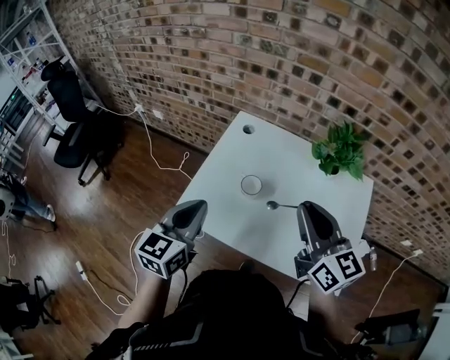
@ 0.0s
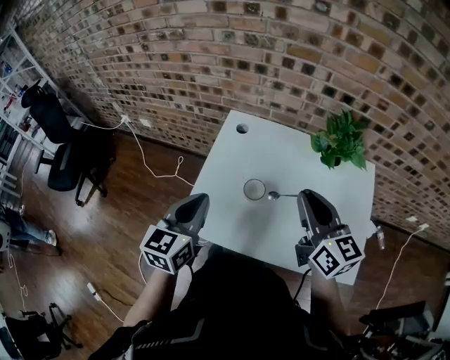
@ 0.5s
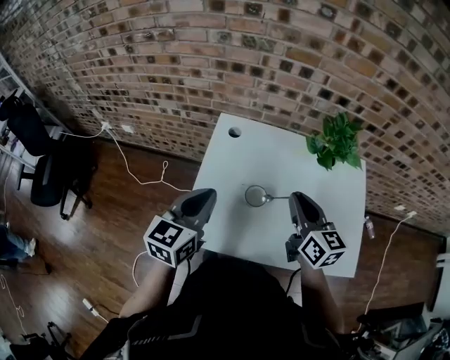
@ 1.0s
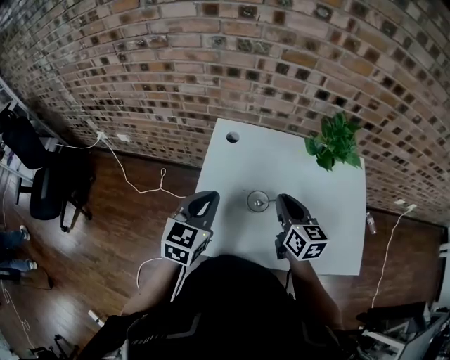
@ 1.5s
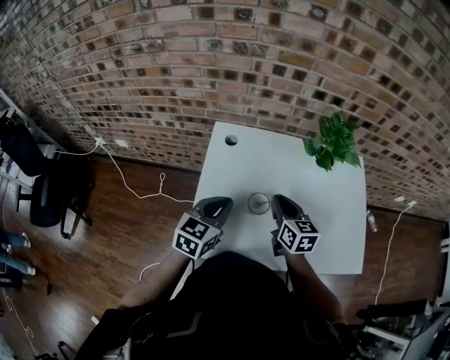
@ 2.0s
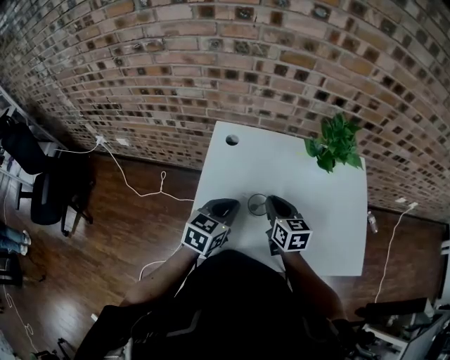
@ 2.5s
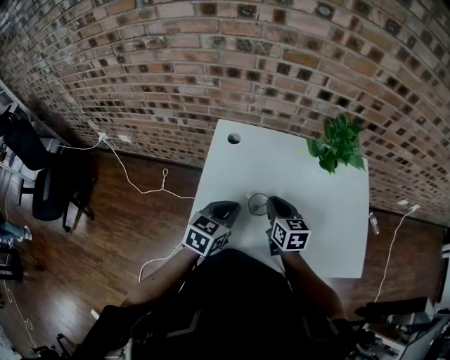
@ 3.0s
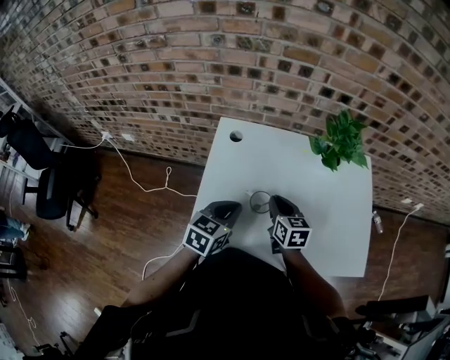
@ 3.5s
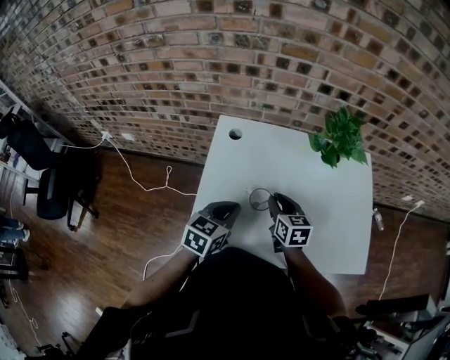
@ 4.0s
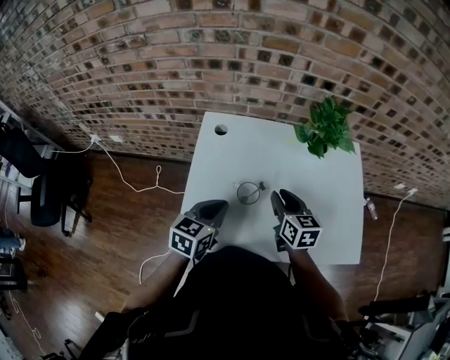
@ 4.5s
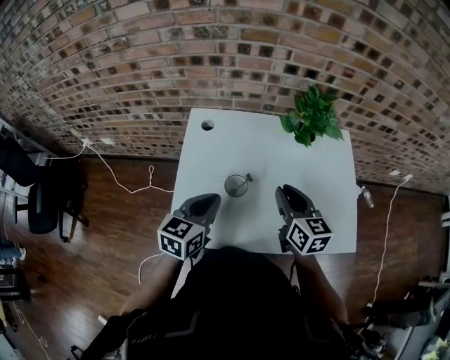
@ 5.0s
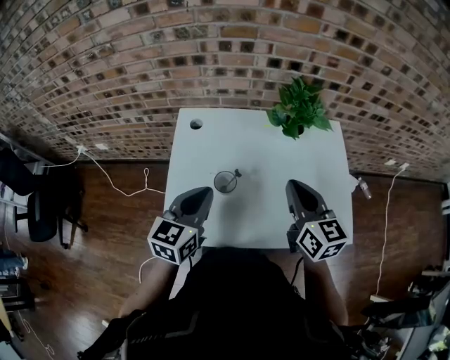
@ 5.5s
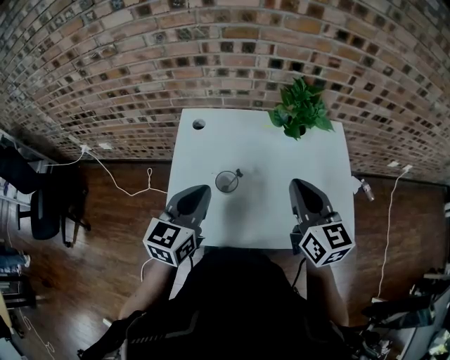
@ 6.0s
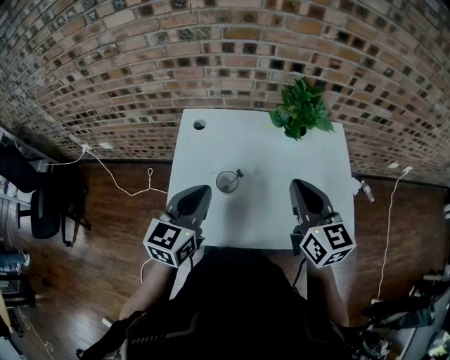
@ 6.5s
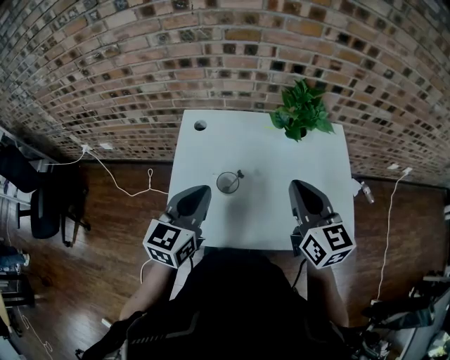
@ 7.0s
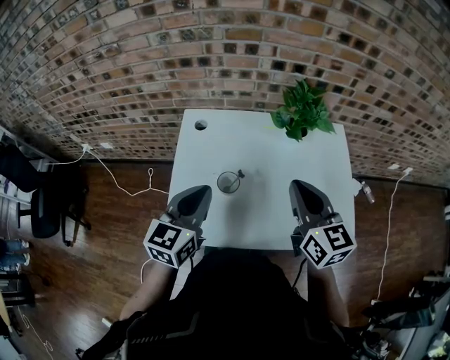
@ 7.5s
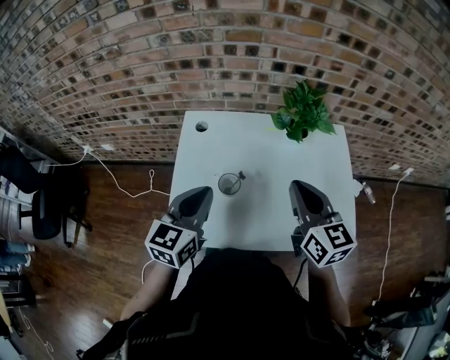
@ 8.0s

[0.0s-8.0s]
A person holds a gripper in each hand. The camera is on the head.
0.0s to 2.0s: The left gripper shifts some 15 cm forward and downward, and swivels some 30 degrees; the right gripper heads downward, forward and to the left, covering some 25 cm, and rotates about 30 degrees.
2.0s to 4.0s: The right gripper heads downward, covering about 5 cm.
4.0s to 6.0s: The right gripper heads upward and to the right, covering about 25 cm, turns by some 20 degrees, and closes its fingers. The left gripper shifts roughly 10 cm upward.
6.0s to 8.0s: Neither gripper changes place.

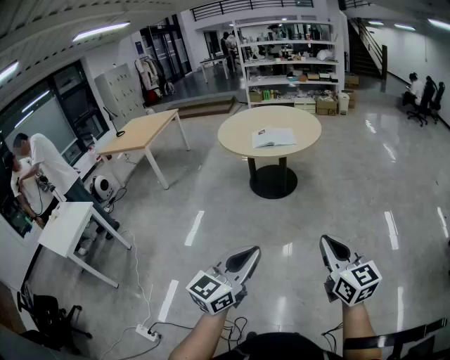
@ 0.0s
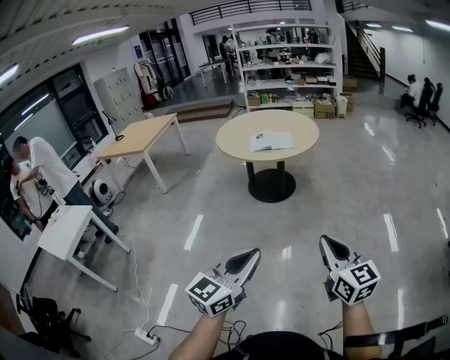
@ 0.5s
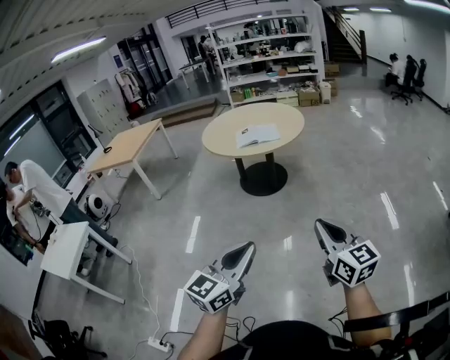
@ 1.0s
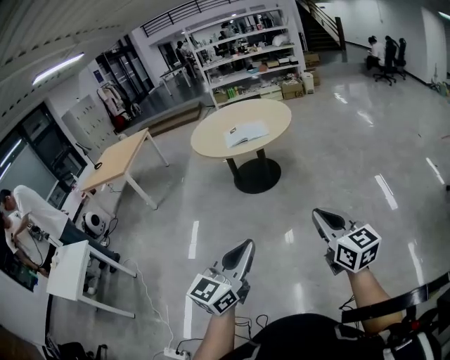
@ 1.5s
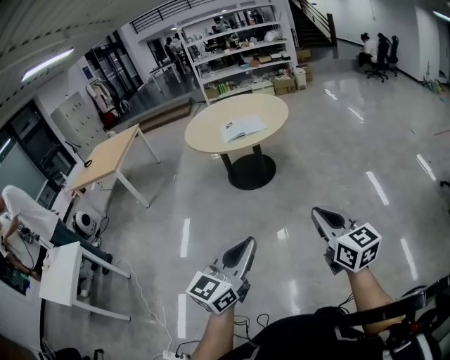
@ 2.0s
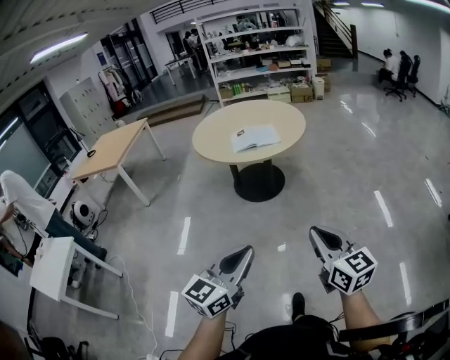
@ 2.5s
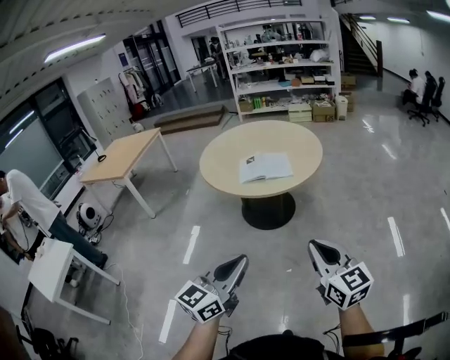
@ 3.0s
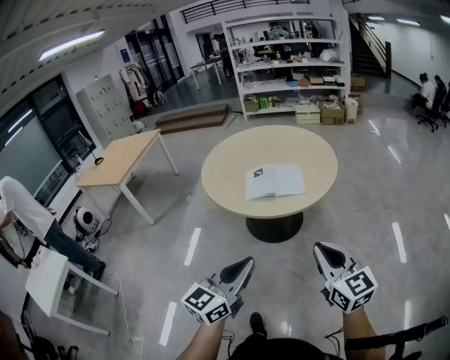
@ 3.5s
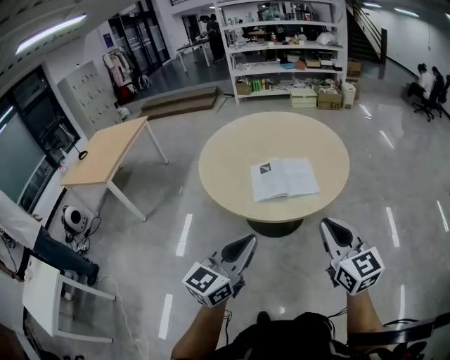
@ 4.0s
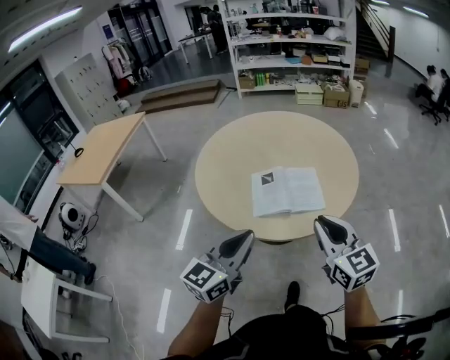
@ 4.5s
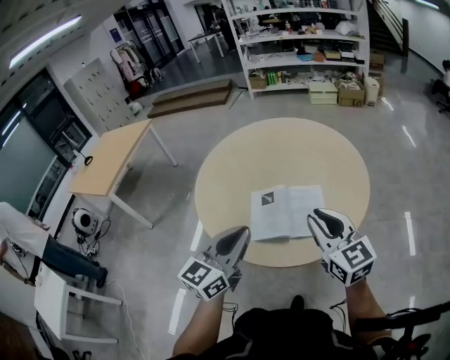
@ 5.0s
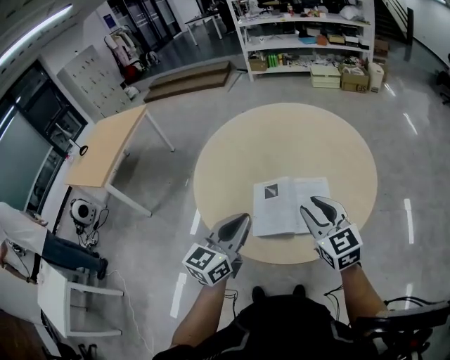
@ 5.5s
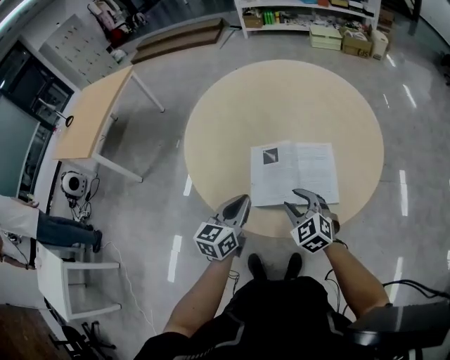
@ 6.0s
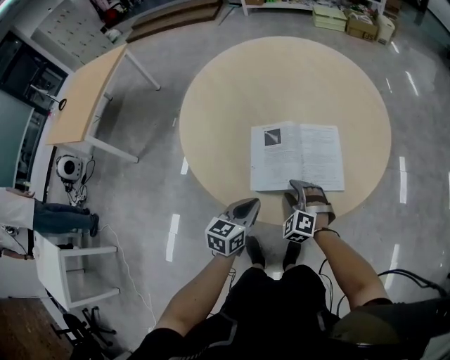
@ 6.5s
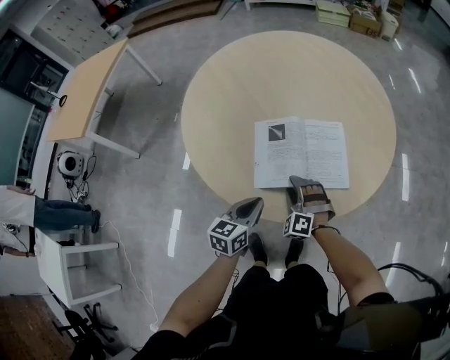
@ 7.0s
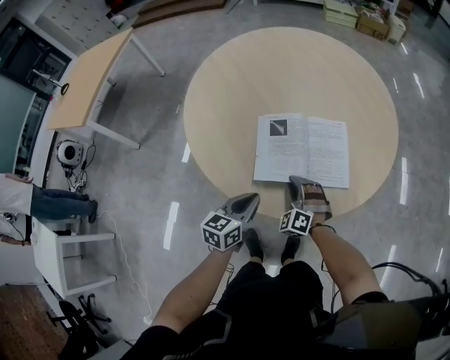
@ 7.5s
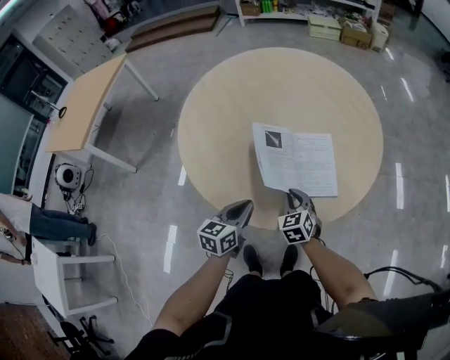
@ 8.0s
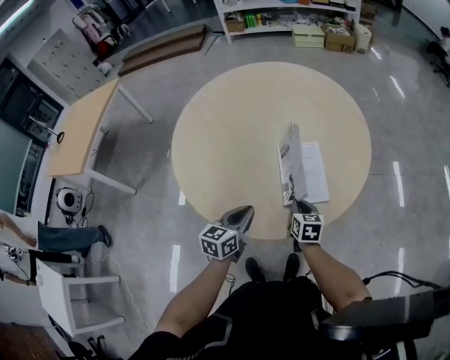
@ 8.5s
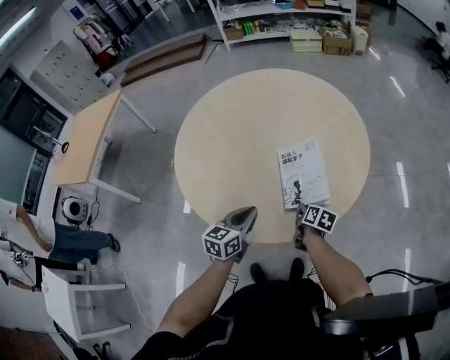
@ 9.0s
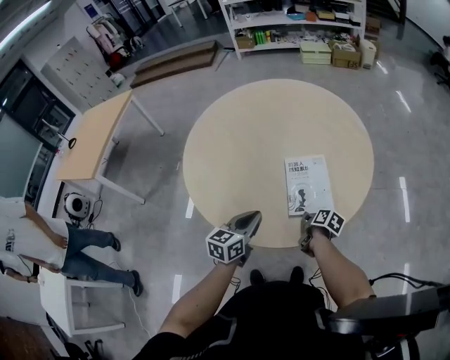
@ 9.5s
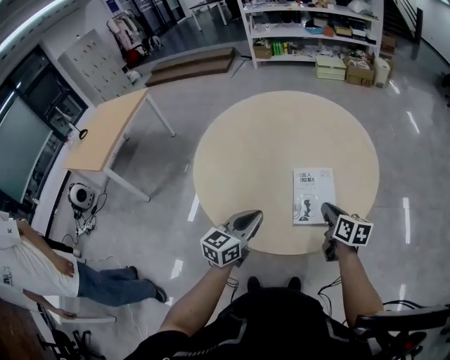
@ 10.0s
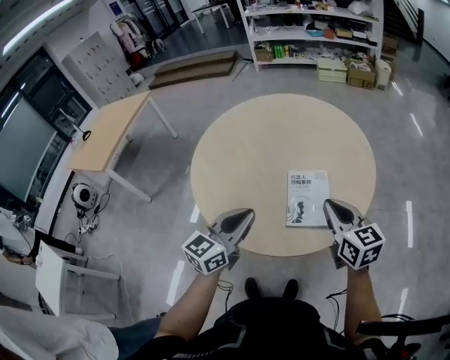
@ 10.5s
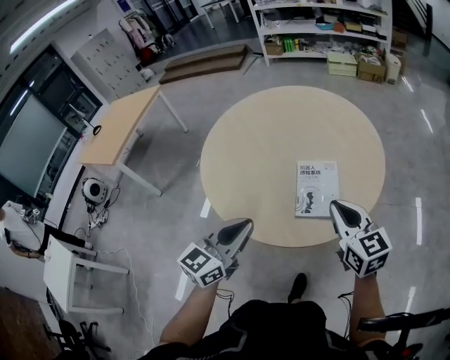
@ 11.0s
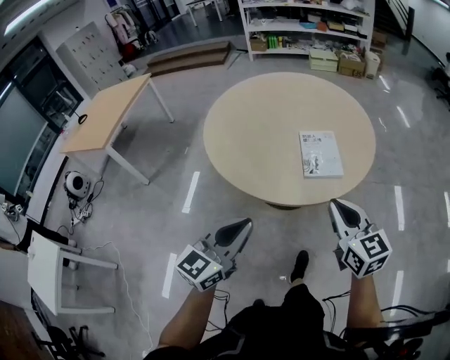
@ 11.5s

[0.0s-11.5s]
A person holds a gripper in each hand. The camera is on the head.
0.0s to 2.0s: The left gripper shifts by about 5 cm. Meanwhile the right gripper ends up some 5 cm from where it was.
2.0s to 4.0s: The pair of grippers is taken forward, about 70 cm.
4.0s to 6.0s: The grippers both shift forward and downward by about 40 cm. The right gripper angles its fingers downward, by roughly 30 degrees, and opens. The left gripper swivels about 30 degrees.
6.0s to 7.5s: Both grippers move downward, some 10 cm. The right gripper rotates roughly 30 degrees, and closes up.
7.5s to 9.5s: The right gripper moves to the right, about 15 cm, and rolls clockwise, seen from behind, by some 120 degrees, while the left gripper goes approximately 5 cm upward.
9.5s to 11.5s: The left gripper heads backward and upward, covering some 30 cm, and swivels approximately 20 degrees, while the right gripper moves upward and backward, about 40 cm, and rotates around the line of its fingers by approximately 60 degrees, counterclockwise from behind.

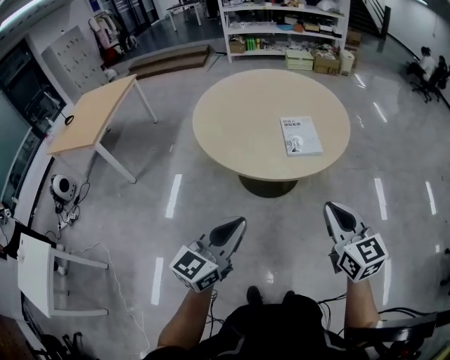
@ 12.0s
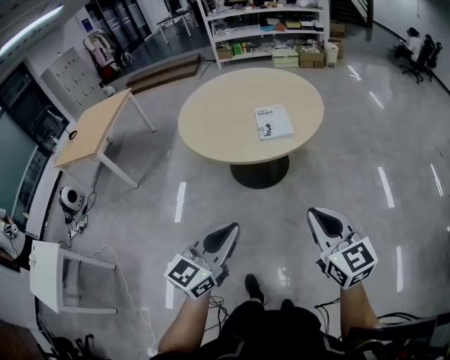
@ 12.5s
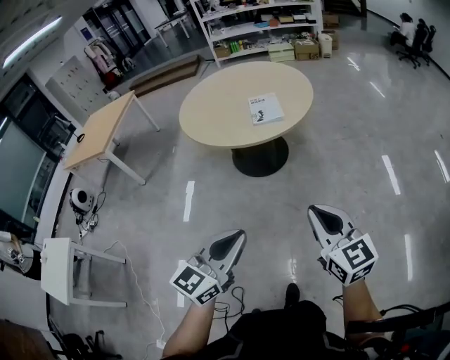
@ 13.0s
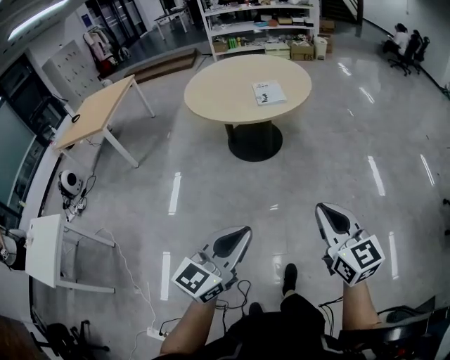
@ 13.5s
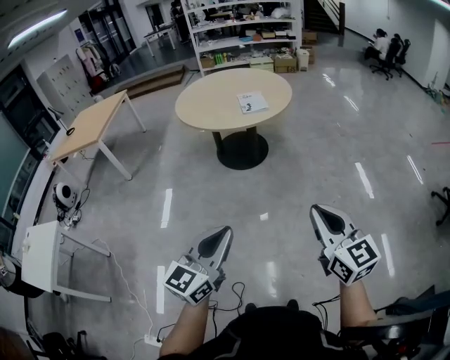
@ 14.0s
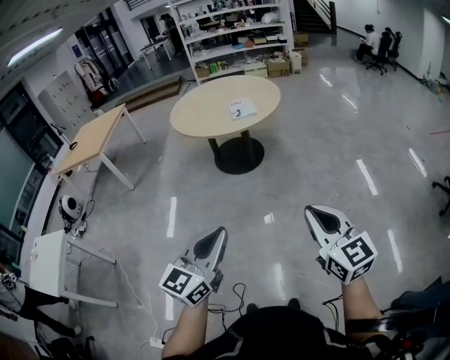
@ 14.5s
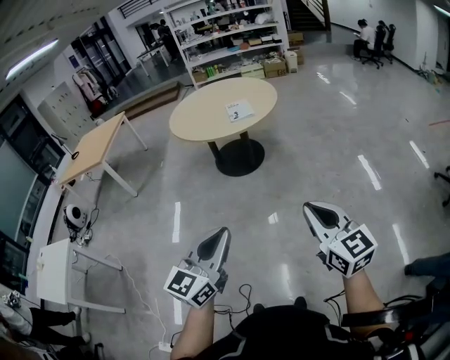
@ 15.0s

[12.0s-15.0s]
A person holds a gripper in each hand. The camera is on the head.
12.0s to 13.5s: The two grippers travel together, backward, approximately 50 cm.
13.5s to 15.0s: The right gripper travels backward and to the right by some 20 cm. The left gripper is displaced backward, to the right and upward by about 15 cm.

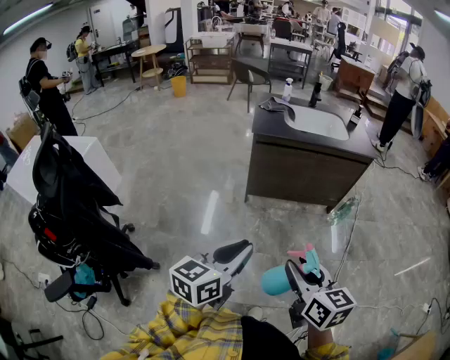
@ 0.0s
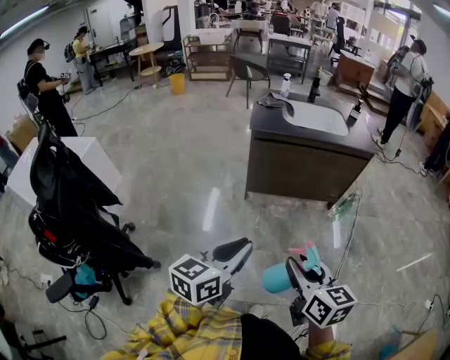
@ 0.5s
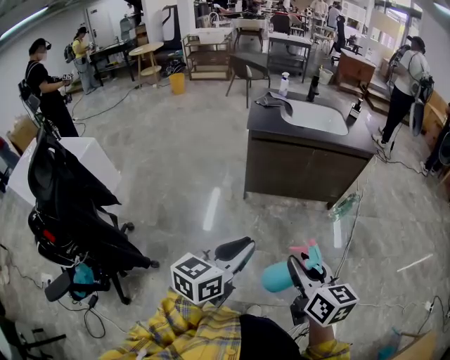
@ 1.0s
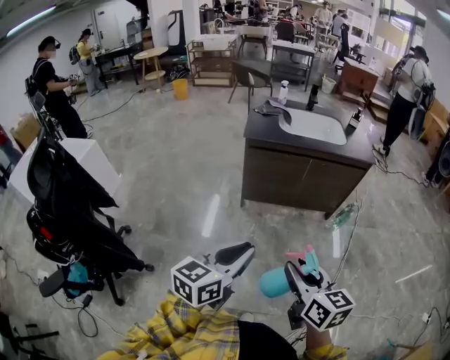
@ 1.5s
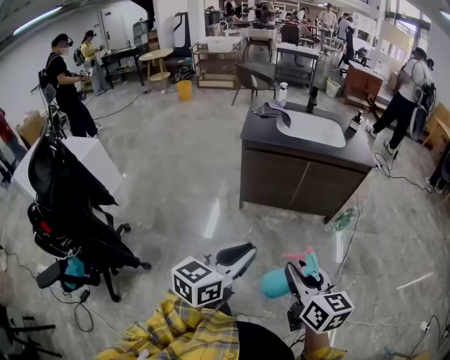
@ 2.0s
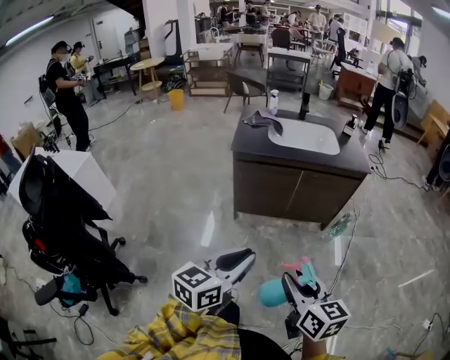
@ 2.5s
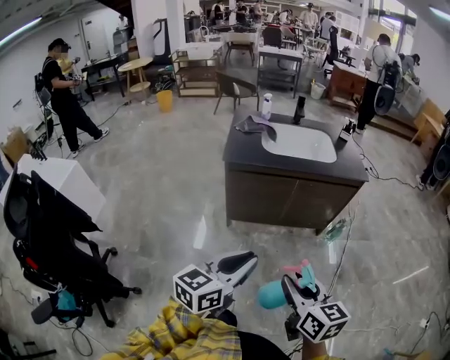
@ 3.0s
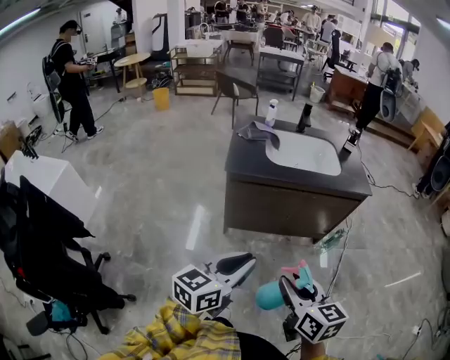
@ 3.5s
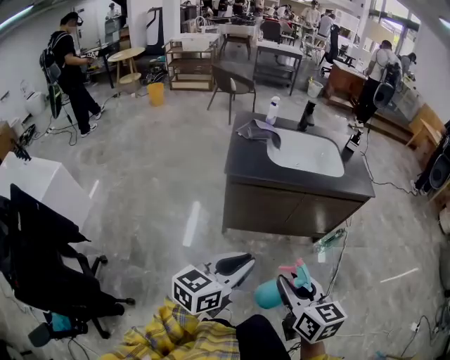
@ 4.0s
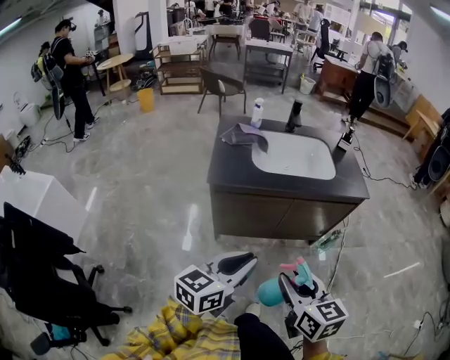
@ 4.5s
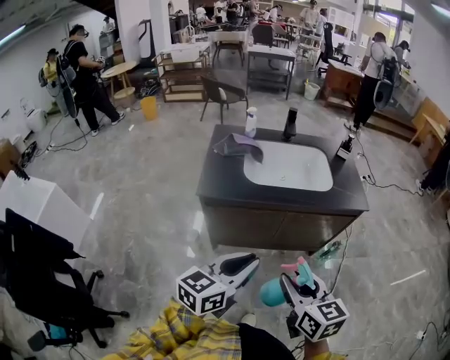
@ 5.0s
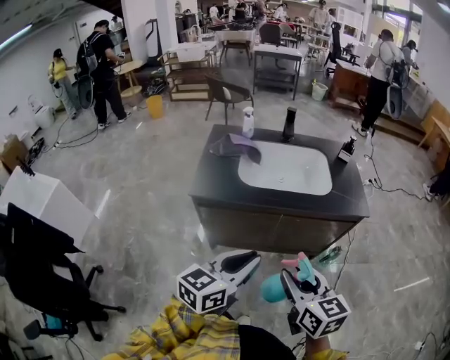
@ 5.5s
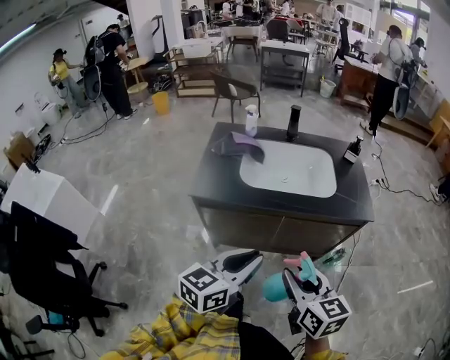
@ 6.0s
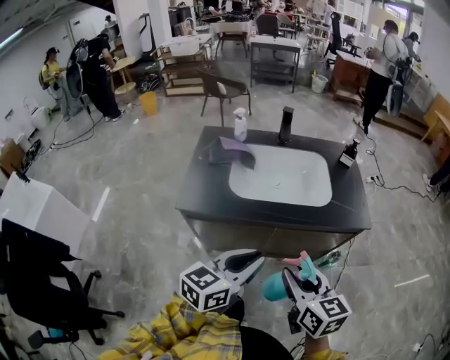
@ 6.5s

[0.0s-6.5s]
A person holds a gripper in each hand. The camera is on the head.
0.0s to 2.0s: Both grippers travel together to the right and forward, approximately 15 cm.
2.0s to 4.5s: Both grippers travel together forward, approximately 30 cm.
4.5s to 6.5s: Both grippers travel together forward and to the right, some 25 cm.
